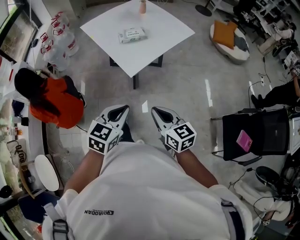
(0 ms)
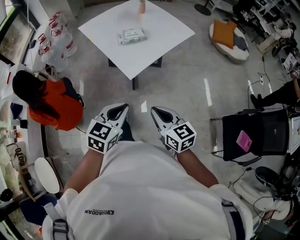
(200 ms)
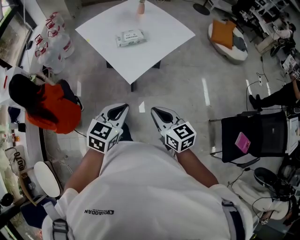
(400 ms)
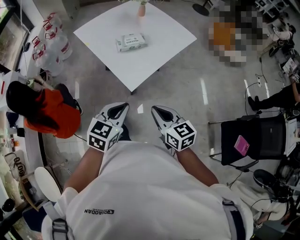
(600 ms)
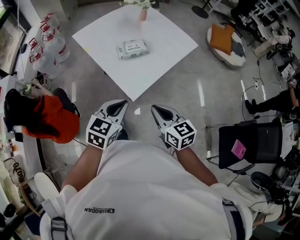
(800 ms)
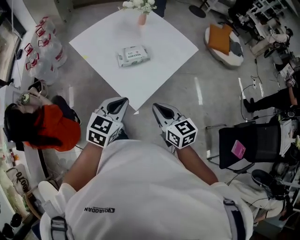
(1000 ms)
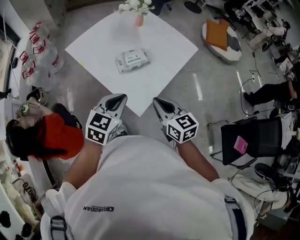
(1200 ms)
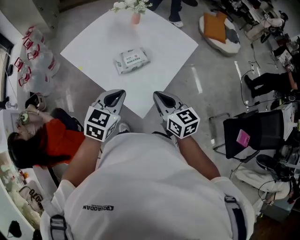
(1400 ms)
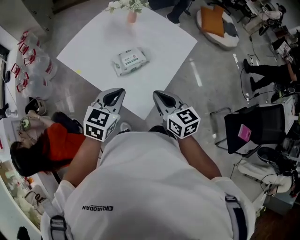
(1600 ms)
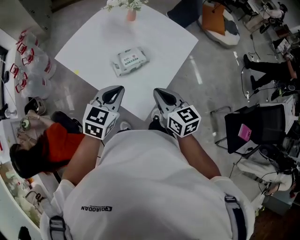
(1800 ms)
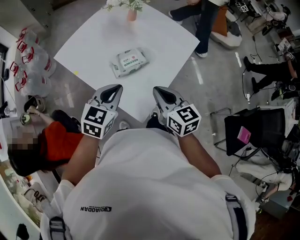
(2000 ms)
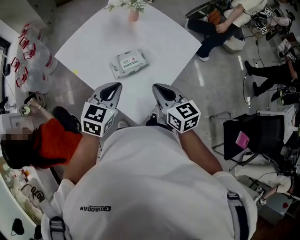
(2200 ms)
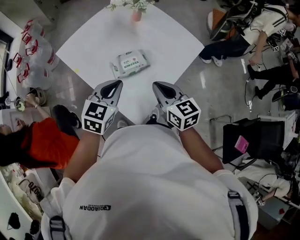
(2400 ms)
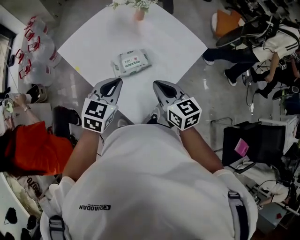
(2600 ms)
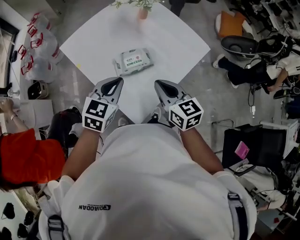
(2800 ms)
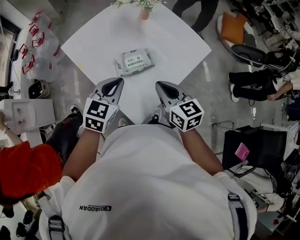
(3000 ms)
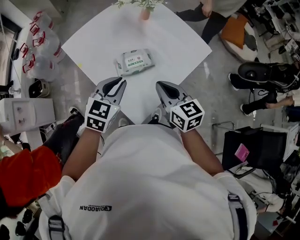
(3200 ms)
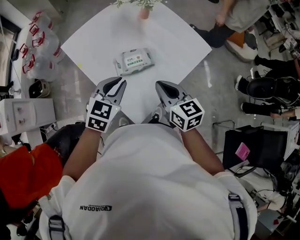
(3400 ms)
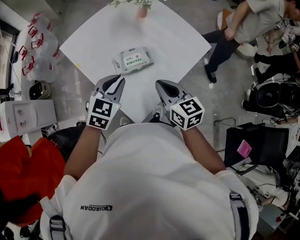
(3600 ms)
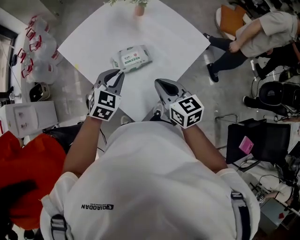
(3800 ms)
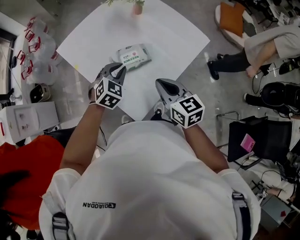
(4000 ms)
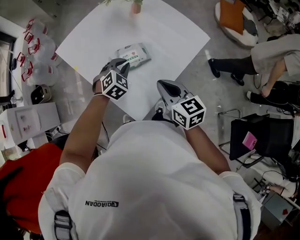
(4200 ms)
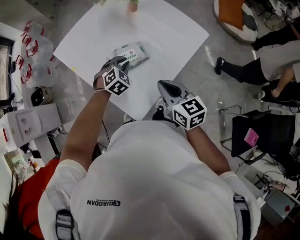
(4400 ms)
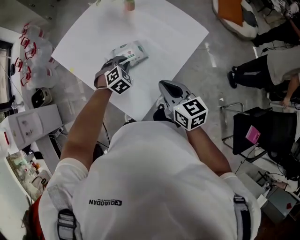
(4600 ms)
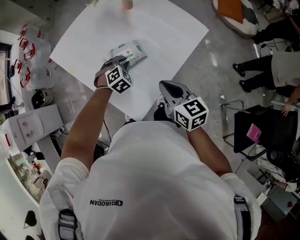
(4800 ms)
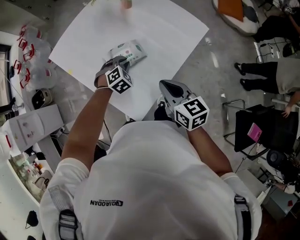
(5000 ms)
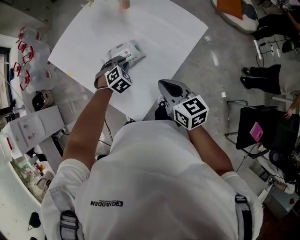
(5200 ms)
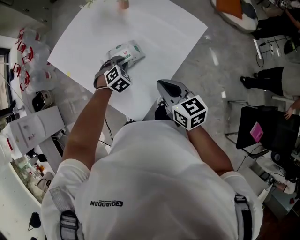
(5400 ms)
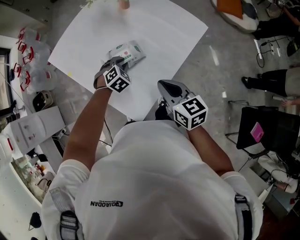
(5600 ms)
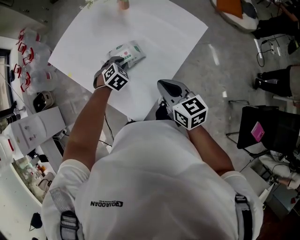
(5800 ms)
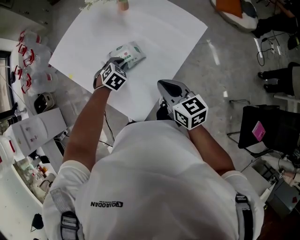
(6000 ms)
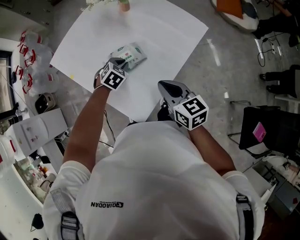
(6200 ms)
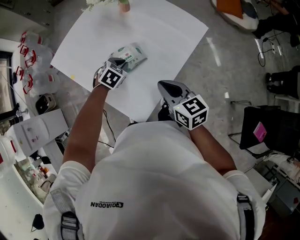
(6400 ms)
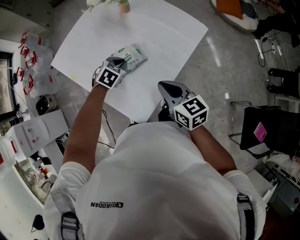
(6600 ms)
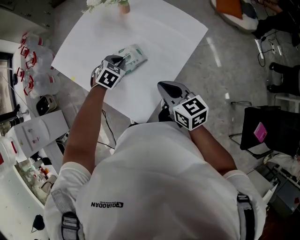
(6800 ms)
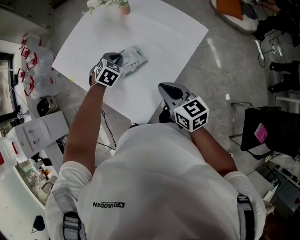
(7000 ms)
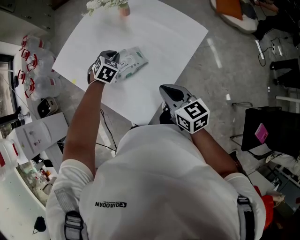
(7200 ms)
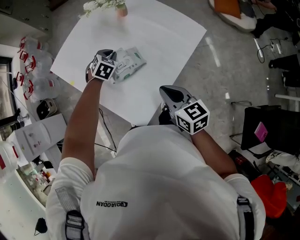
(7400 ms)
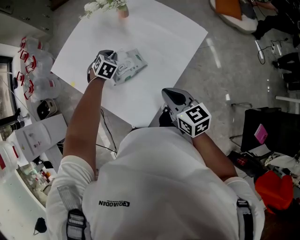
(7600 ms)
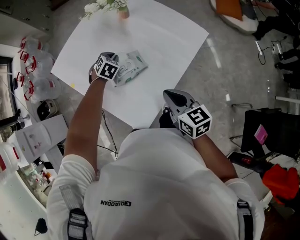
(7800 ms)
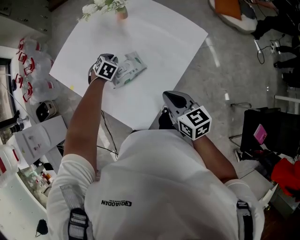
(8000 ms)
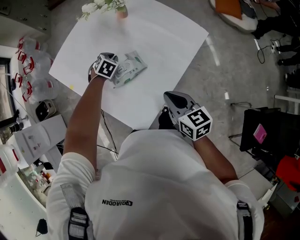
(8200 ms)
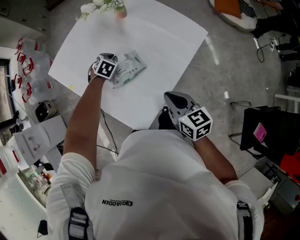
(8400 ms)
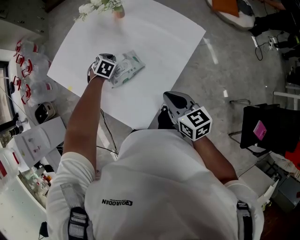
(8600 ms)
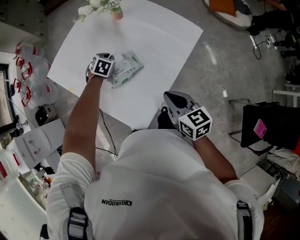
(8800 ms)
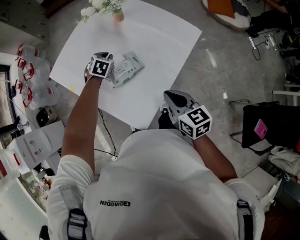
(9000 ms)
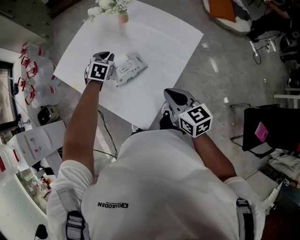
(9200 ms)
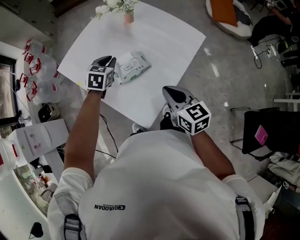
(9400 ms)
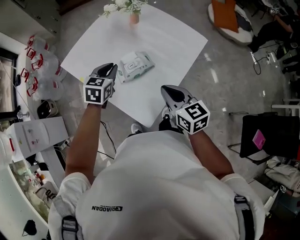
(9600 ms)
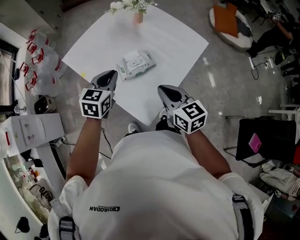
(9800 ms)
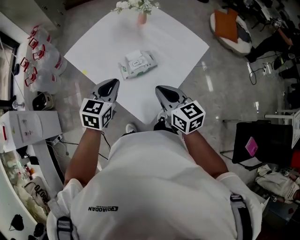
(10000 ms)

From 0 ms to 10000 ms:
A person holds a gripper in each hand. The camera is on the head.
From 0 ms to 1400 ms: The two grippers go roughly 35 cm forward.
From 1400 ms to 2800 ms: The grippers both shift forward by some 10 cm.
From 2800 ms to 4200 ms: The left gripper travels downward and forward by roughly 15 cm, and turns by roughly 30 degrees.
From 4200 ms to 5800 ms: The left gripper moves downward, about 10 cm.
From 5800 ms to 7200 ms: The left gripper shifts about 5 cm forward.
From 7200 ms to 8600 ms: The left gripper heads downward, covering approximately 5 cm.
From 8600 ms to 10000 ms: The left gripper is displaced upward and backward by some 30 cm, and angles its fingers upward, by roughly 30 degrees; the right gripper moves to the left and upward, some 10 cm.

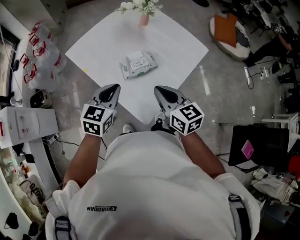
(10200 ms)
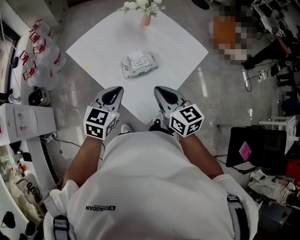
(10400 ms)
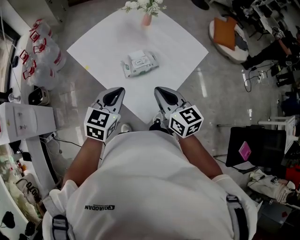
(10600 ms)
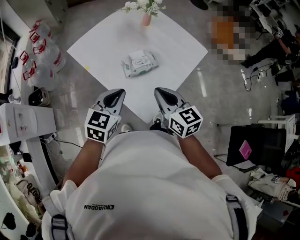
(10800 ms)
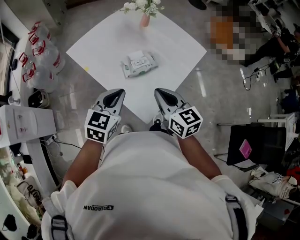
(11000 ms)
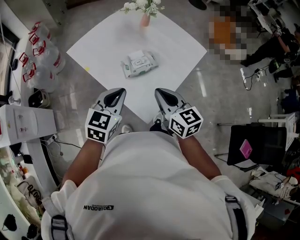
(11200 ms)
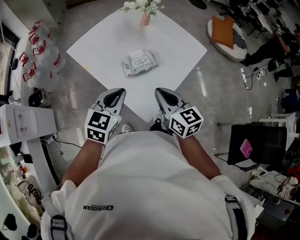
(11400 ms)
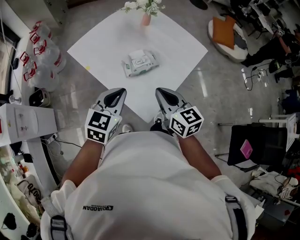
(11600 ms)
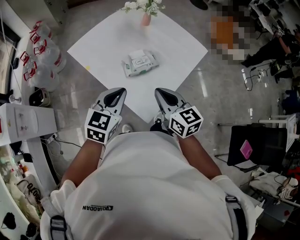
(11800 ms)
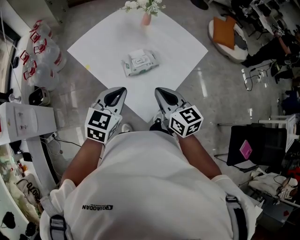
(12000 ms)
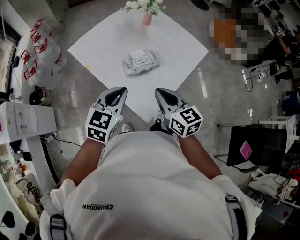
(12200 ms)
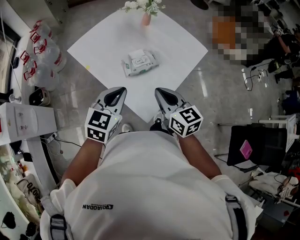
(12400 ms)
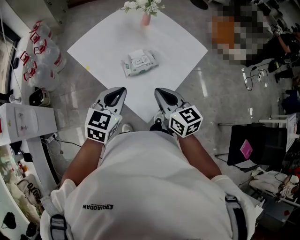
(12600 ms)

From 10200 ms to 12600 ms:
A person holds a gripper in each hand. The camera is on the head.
From 10200 ms to 11400 ms: There are only small adjustments of the grippers.
From 11400 ms to 12600 ms: The two grippers keep their place.

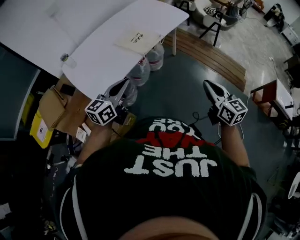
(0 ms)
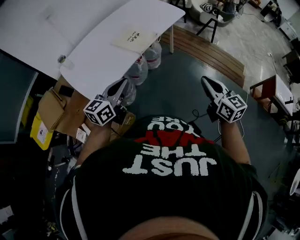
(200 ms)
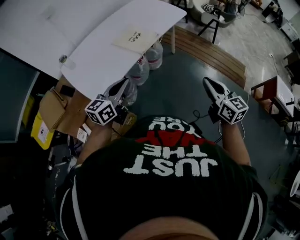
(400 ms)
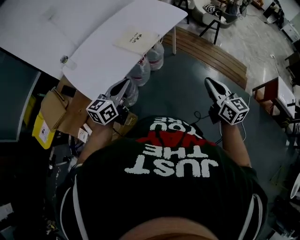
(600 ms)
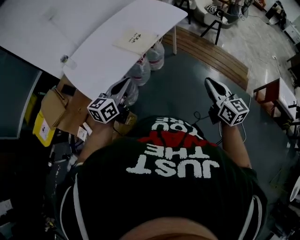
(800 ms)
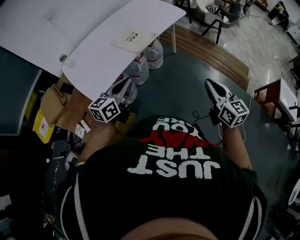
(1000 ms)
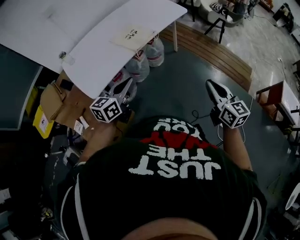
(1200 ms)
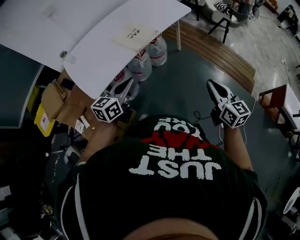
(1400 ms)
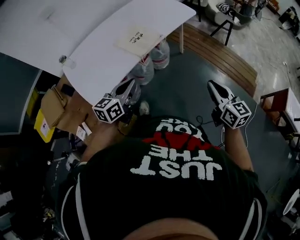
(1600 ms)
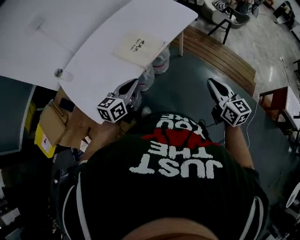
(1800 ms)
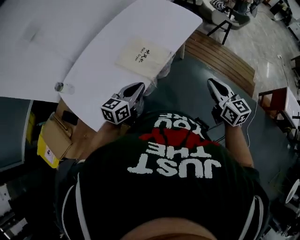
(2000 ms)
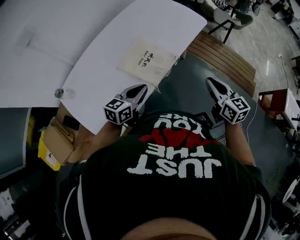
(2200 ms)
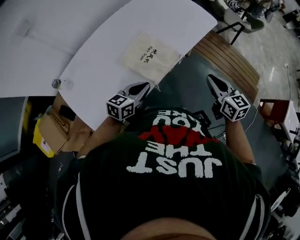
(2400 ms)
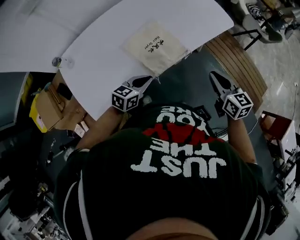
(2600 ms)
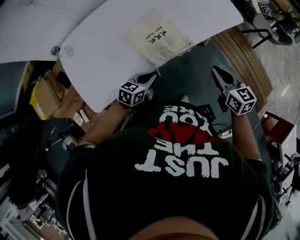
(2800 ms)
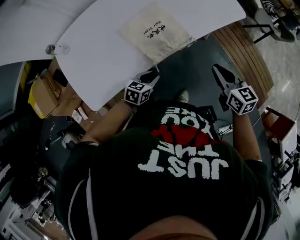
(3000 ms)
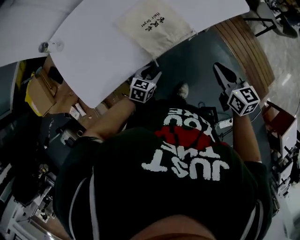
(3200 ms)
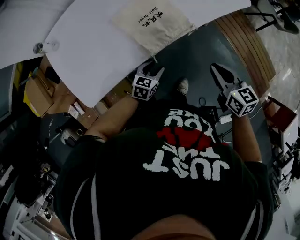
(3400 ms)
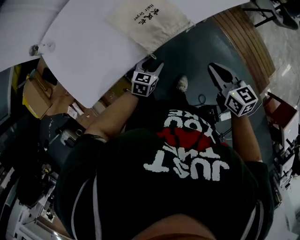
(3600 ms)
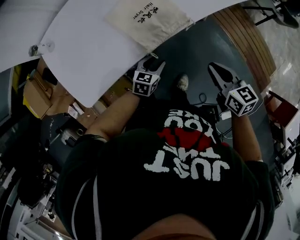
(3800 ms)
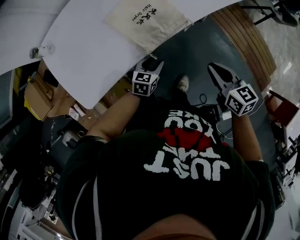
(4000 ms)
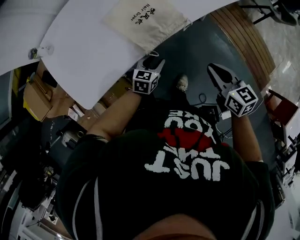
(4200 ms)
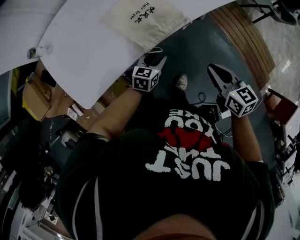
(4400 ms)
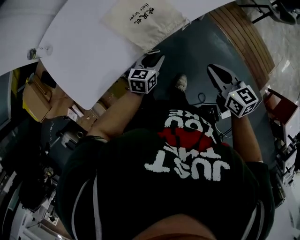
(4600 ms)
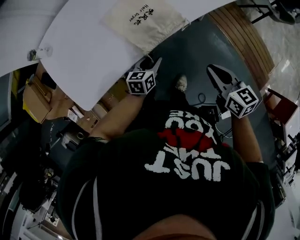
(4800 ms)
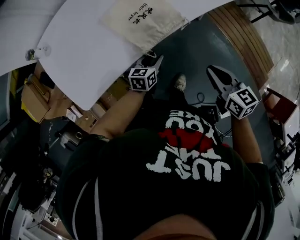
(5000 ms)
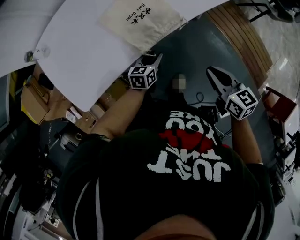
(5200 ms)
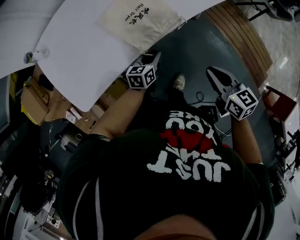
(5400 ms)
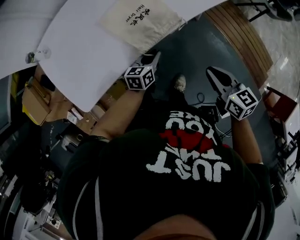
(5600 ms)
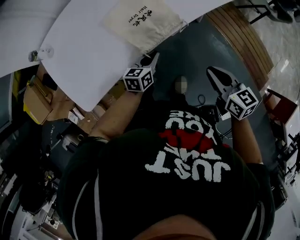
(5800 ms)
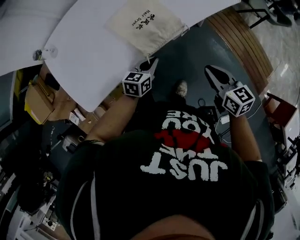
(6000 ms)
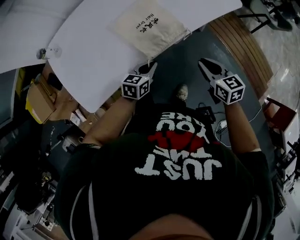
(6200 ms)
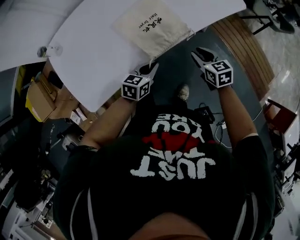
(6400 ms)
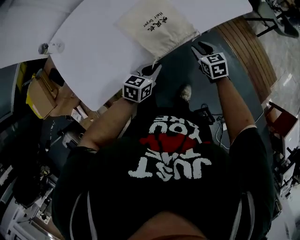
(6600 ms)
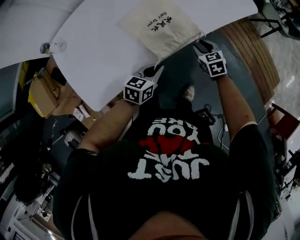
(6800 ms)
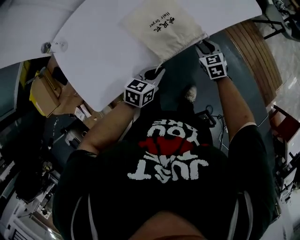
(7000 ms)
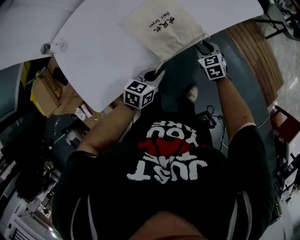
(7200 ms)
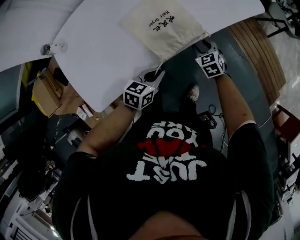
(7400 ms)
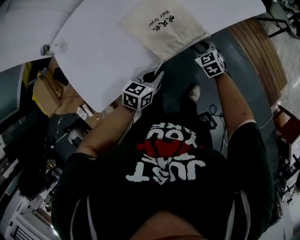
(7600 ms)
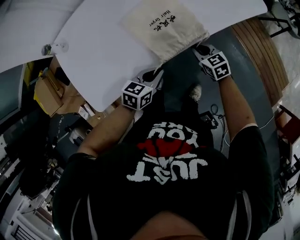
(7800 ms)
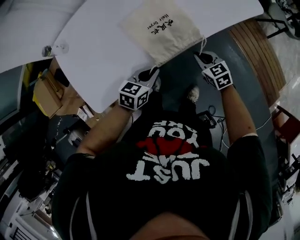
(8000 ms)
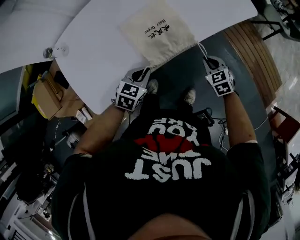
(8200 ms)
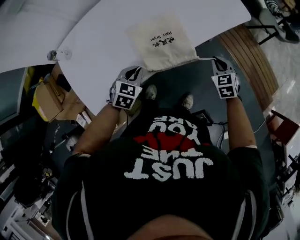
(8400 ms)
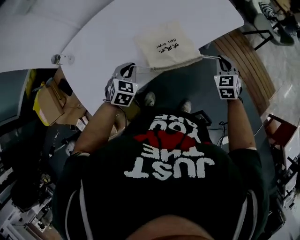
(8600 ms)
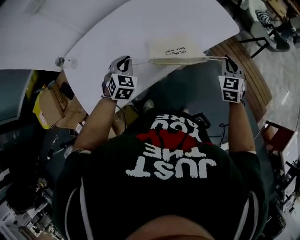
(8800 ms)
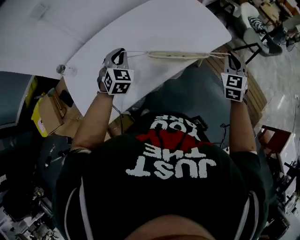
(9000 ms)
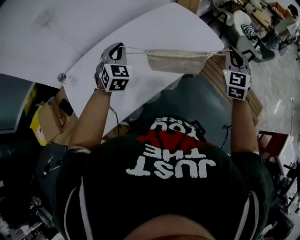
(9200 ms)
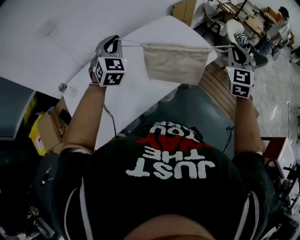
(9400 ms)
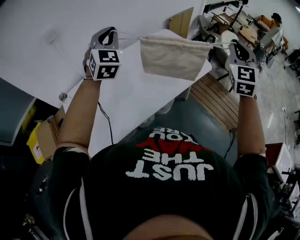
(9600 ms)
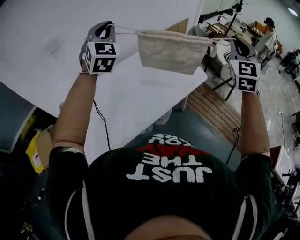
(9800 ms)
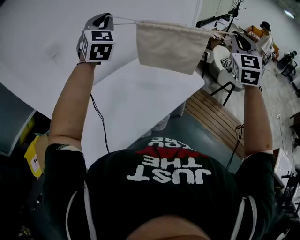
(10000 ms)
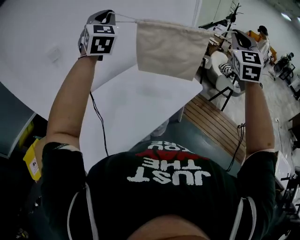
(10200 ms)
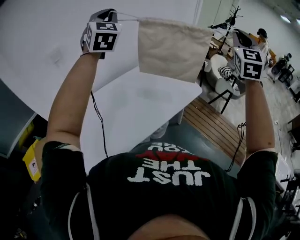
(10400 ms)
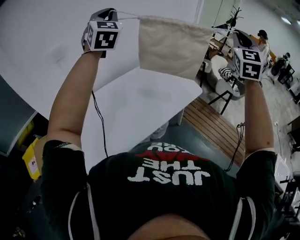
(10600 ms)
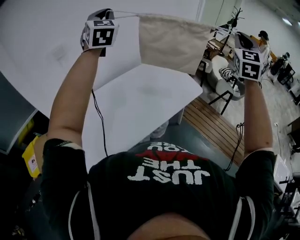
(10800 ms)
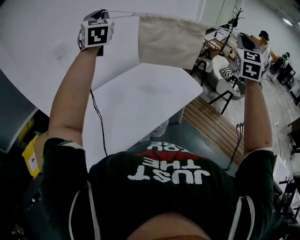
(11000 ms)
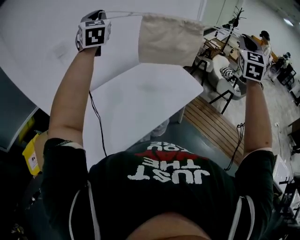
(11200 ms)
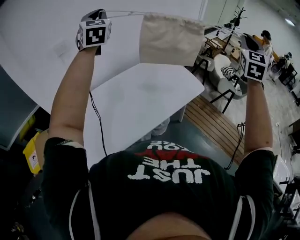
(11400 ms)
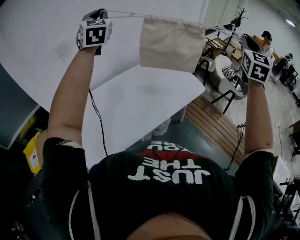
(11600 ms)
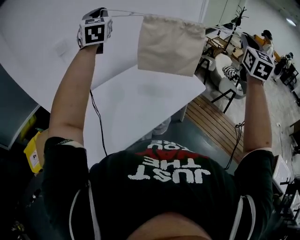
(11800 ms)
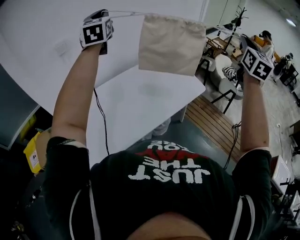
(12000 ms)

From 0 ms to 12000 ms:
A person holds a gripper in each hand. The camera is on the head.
From 0 ms to 1600 ms: The right gripper heads forward and to the right, covering some 10 cm; the left gripper travels forward, to the right and downward by roughly 10 cm.
From 1600 ms to 3000 ms: The left gripper shifts about 35 cm downward and forward, and rotates about 30 degrees, while the right gripper heads forward, covering approximately 35 cm, and turns by approximately 20 degrees.
From 3000 ms to 4400 ms: The left gripper goes about 5 cm to the right, and opens up. Meanwhile the right gripper moves downward and backward, some 5 cm.
From 4400 ms to 6000 ms: The left gripper travels upward by about 5 cm, and closes up.
From 6000 ms to 7600 ms: The right gripper goes approximately 25 cm downward, forward and to the left, changes its angle by roughly 30 degrees, and opens up.
From 7600 ms to 9000 ms: The right gripper travels upward and to the right by approximately 40 cm, changes its angle by roughly 40 degrees, and closes its fingers, while the left gripper is displaced upward, forward and to the left by roughly 30 cm, and changes its angle by roughly 60 degrees.
From 9000 ms to 10400 ms: Both grippers move upward, approximately 50 cm. The right gripper turns by about 30 degrees. Meanwhile the left gripper tilts its fingers roughly 40 degrees upward.
From 10400 ms to 12000 ms: The right gripper changes its angle by approximately 30 degrees. Meanwhile the left gripper goes some 5 cm to the left.
